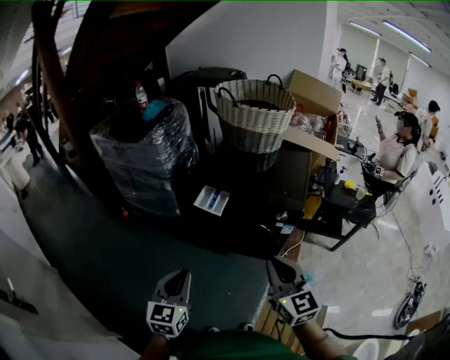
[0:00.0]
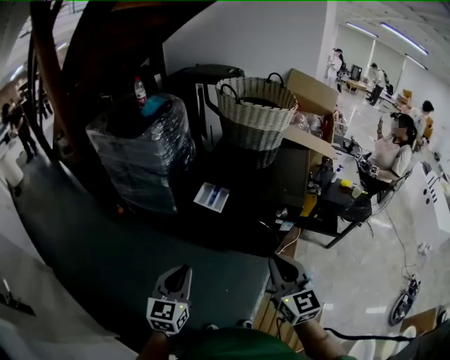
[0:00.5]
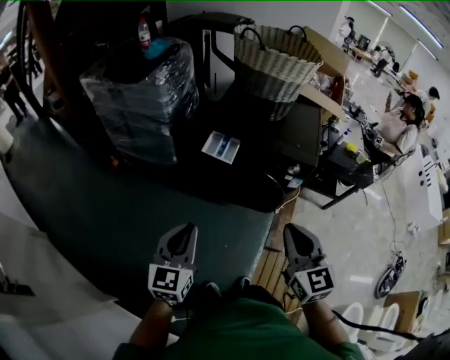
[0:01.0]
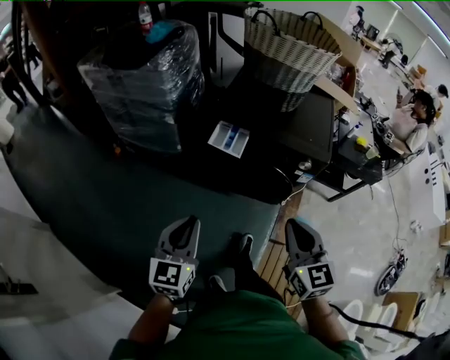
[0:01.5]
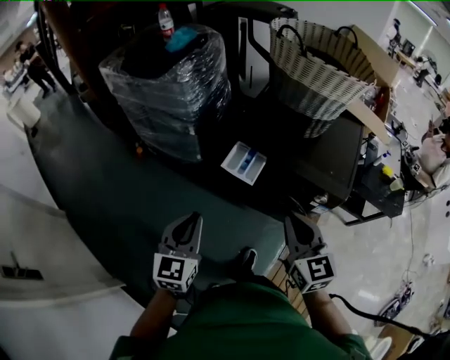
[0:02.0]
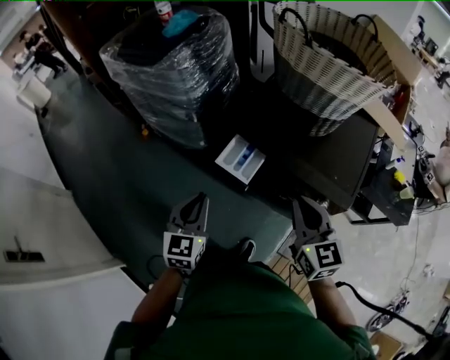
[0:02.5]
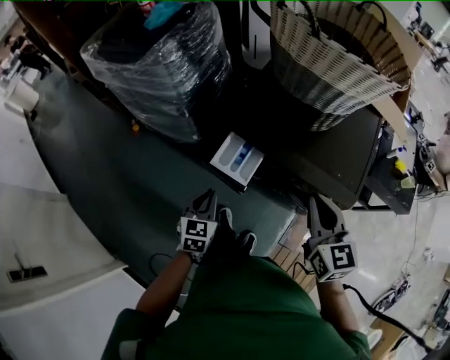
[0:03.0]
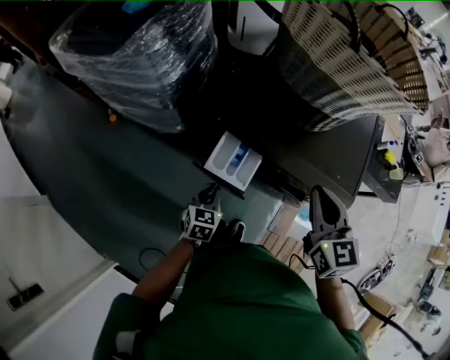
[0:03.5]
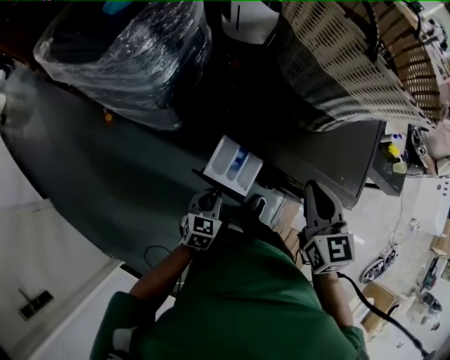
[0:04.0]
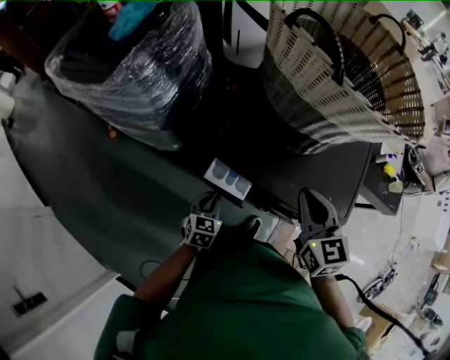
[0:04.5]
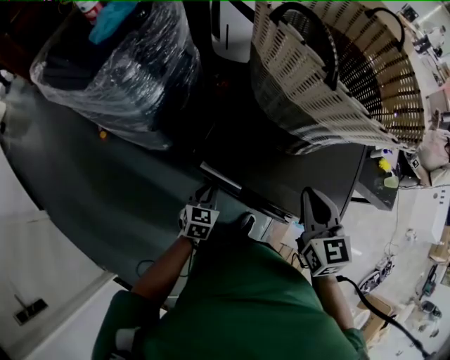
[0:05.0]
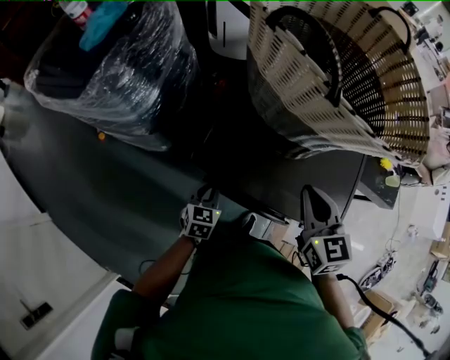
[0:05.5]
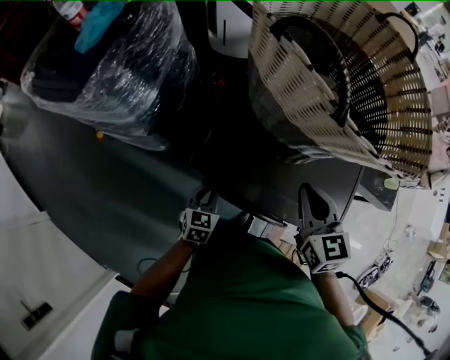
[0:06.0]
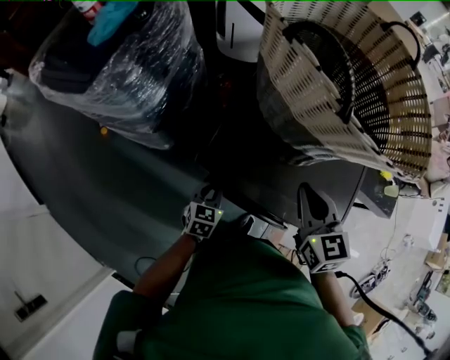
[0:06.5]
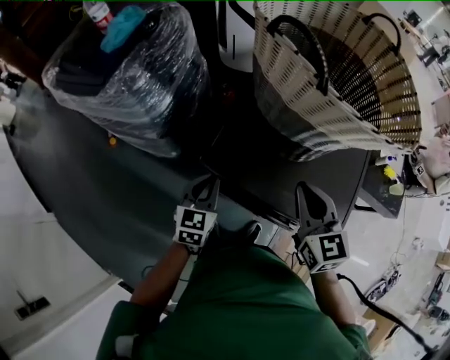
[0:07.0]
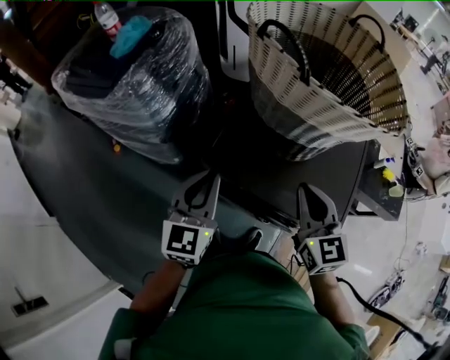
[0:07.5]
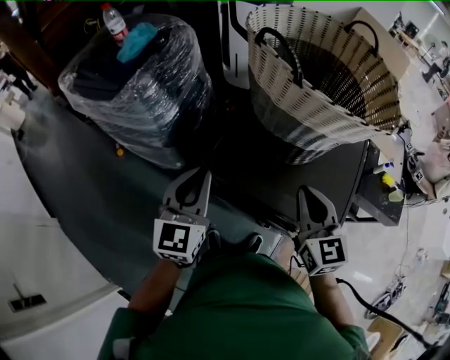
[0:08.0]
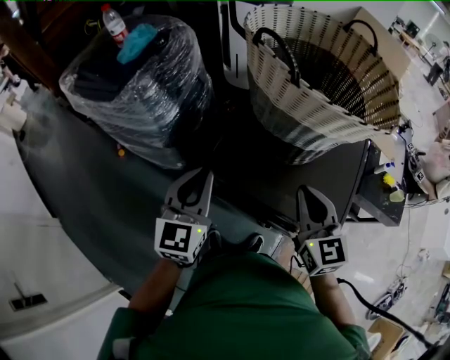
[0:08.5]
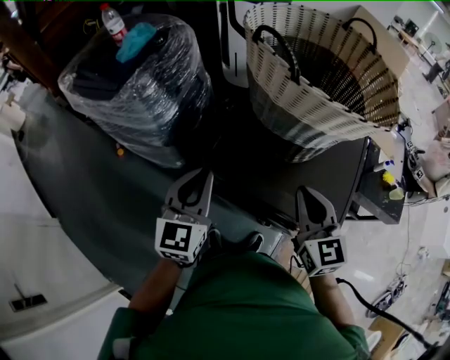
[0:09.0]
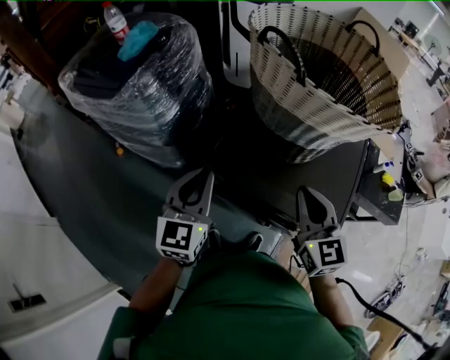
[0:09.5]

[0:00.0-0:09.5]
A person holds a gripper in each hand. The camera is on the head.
0:00.0 to 0:02.0: Both grippers move forward, about 20 cm.
0:02.0 to 0:04.0: The left gripper moves downward and forward, approximately 35 cm, and turns by approximately 30 degrees. Meanwhile the right gripper travels forward by about 25 cm.
0:04.0 to 0:05.5: The left gripper shifts about 15 cm forward; the right gripper goes approximately 10 cm forward and to the right.
0:05.5 to 0:07.5: The left gripper goes roughly 25 cm upward, and points its fingers some 30 degrees further upward. The right gripper shifts some 5 cm upward.
0:07.5 to 0:09.5: The grippers move only a little.

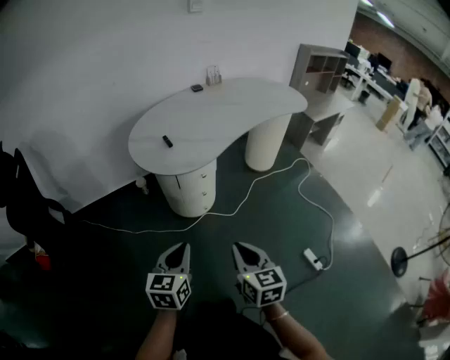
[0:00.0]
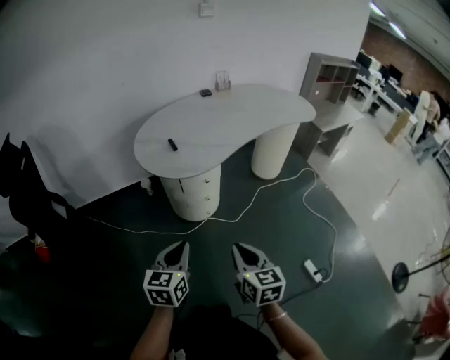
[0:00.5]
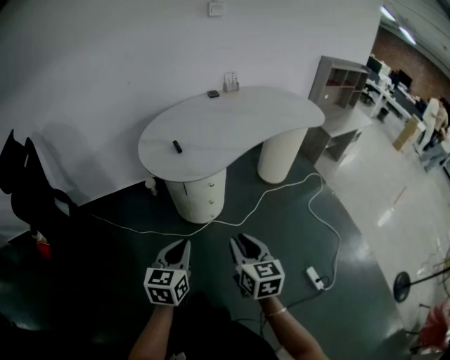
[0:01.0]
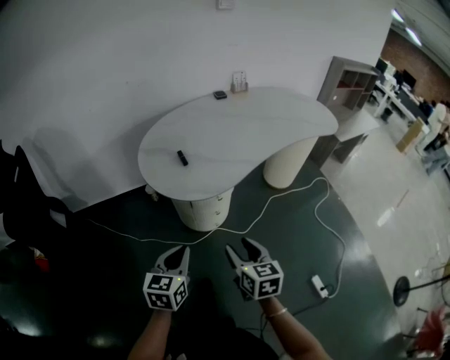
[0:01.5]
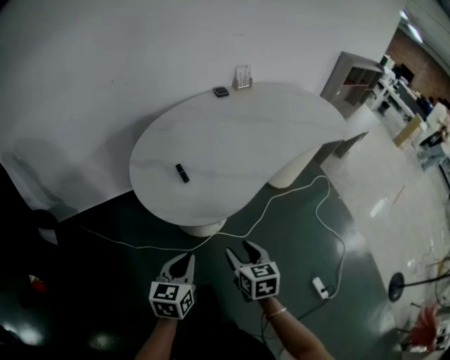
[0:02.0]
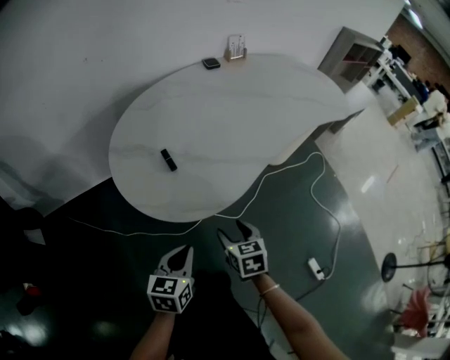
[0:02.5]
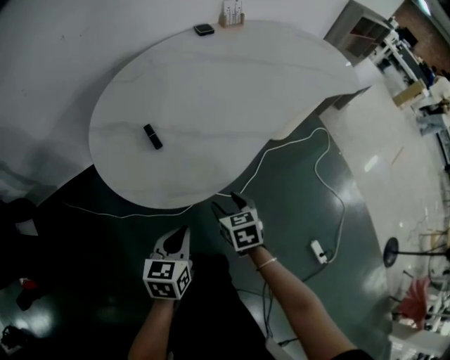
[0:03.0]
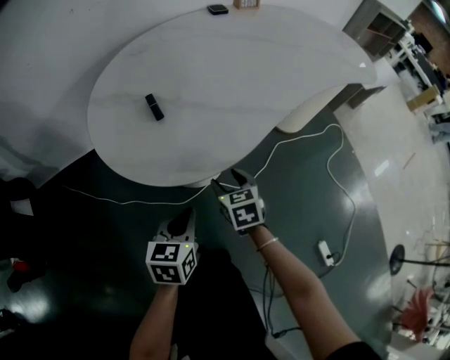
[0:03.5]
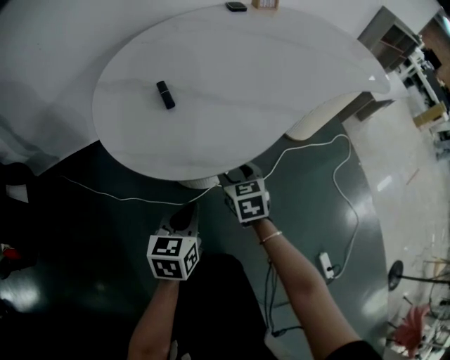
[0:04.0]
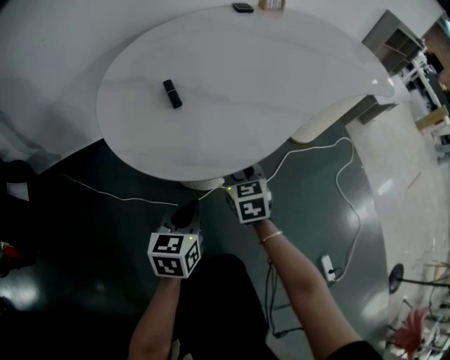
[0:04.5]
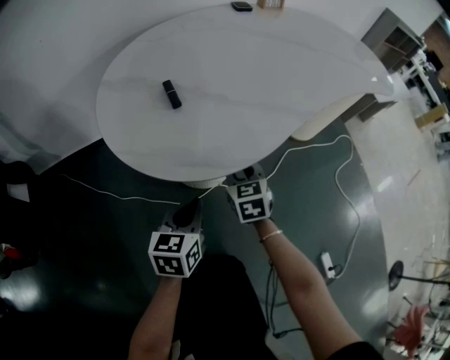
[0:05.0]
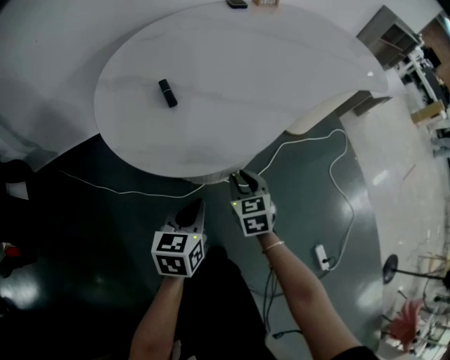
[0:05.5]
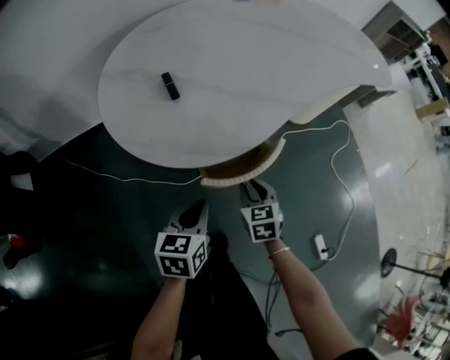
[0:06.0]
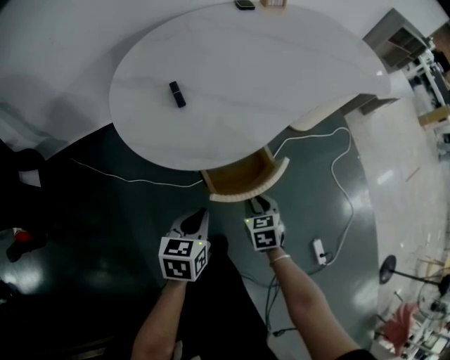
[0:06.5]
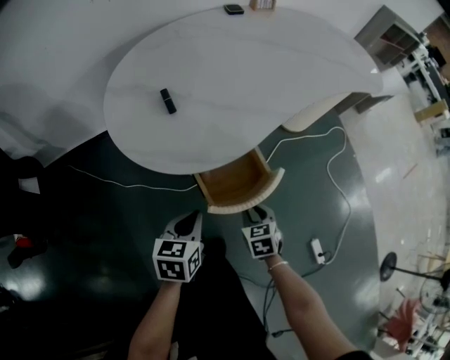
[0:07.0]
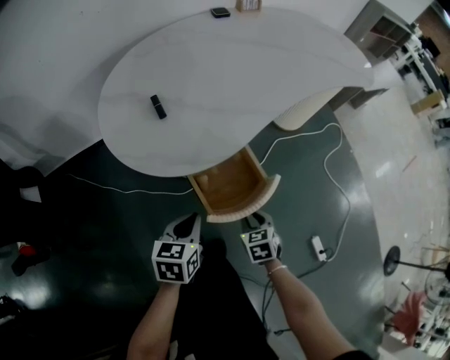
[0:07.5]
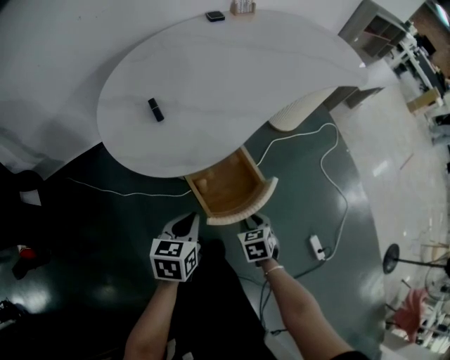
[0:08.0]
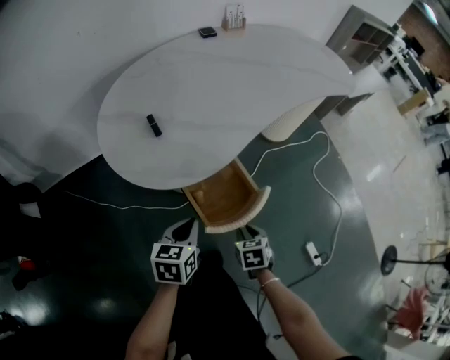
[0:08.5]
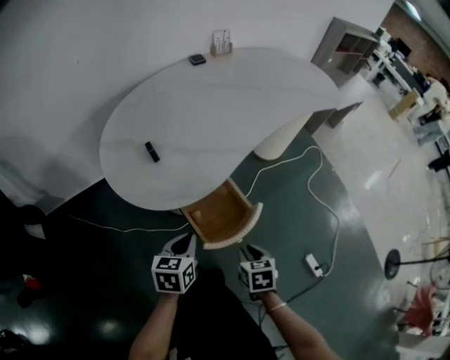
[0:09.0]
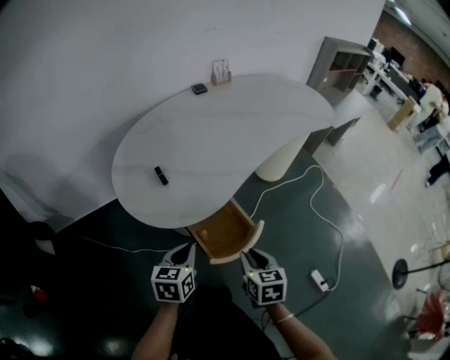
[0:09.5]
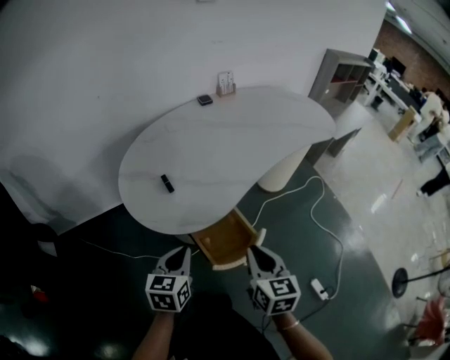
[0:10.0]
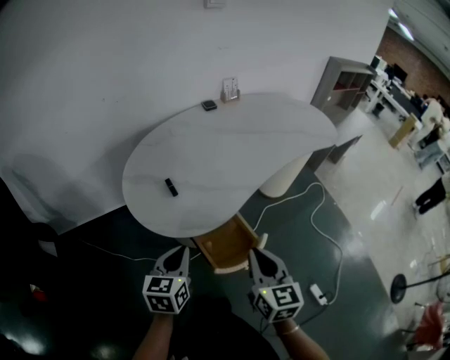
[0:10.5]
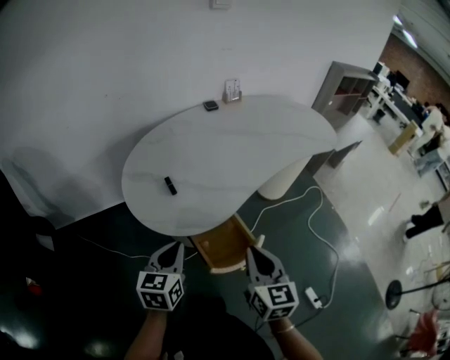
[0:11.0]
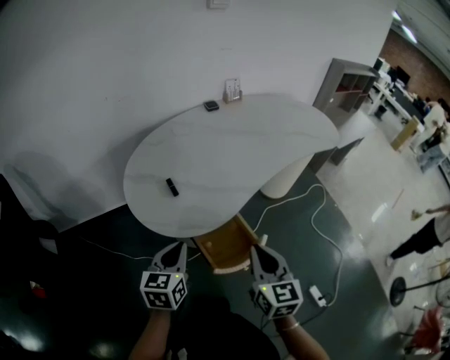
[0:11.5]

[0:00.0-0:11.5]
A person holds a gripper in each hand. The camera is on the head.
0:00.0 to 0:02.0: Both grippers travel together forward, about 25 cm. The right gripper opens its fingers.
0:02.0 to 0:04.0: The left gripper travels downward by roughly 15 cm, while the right gripper is displaced downward and forward by about 25 cm.
0:04.0 to 0:06.0: The left gripper shifts by about 5 cm; the right gripper is displaced backward and to the right by approximately 10 cm, and closes its fingers.
0:06.0 to 0:07.5: The right gripper moves backward and to the right, some 10 cm.
0:07.5 to 0:09.5: The left gripper shifts about 10 cm upward, while the right gripper is displaced upward by some 20 cm, and rotates about 30 degrees.
0:09.5 to 0:11.5: The left gripper moves upward, some 10 cm; the right gripper heads upward, covering roughly 15 cm, turns by some 30 degrees, and closes.

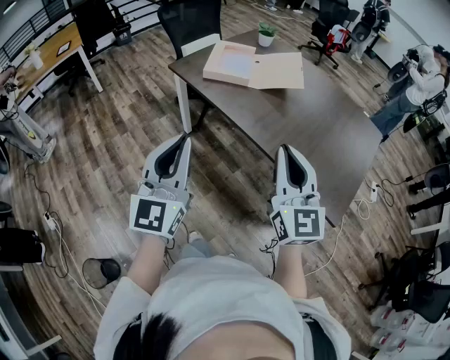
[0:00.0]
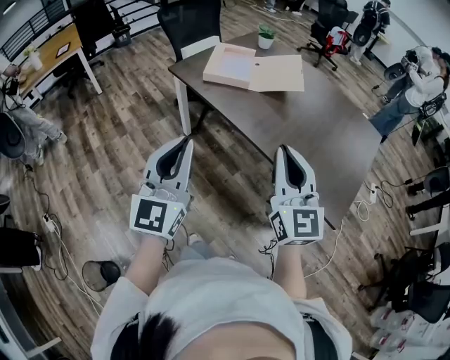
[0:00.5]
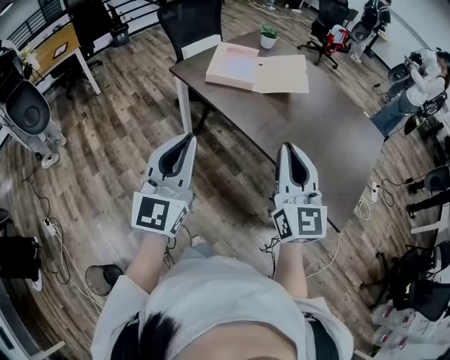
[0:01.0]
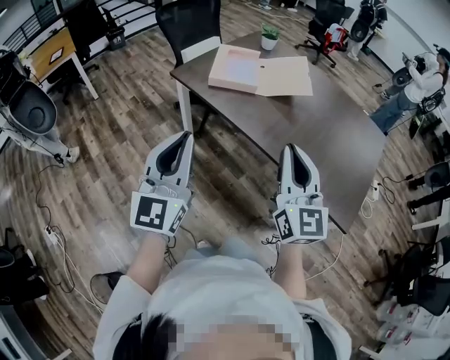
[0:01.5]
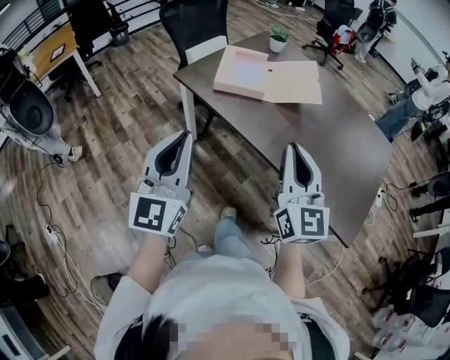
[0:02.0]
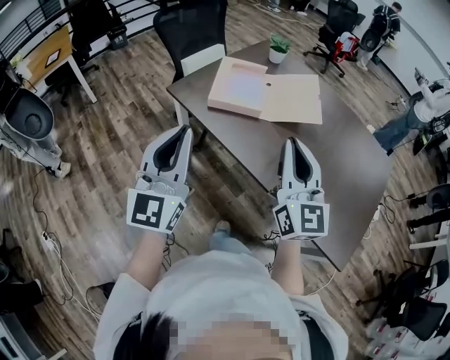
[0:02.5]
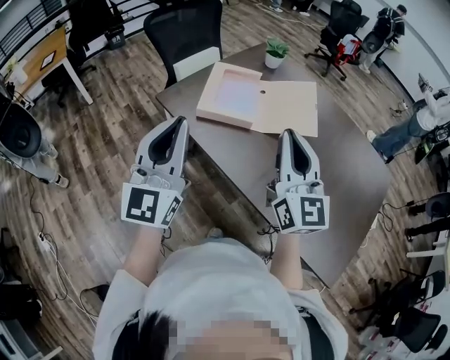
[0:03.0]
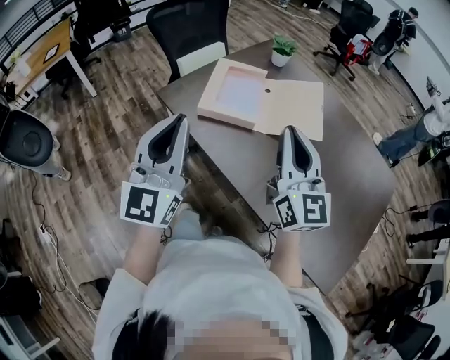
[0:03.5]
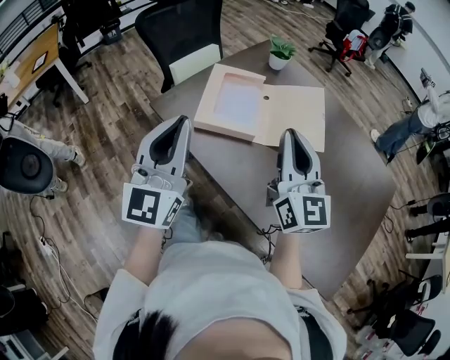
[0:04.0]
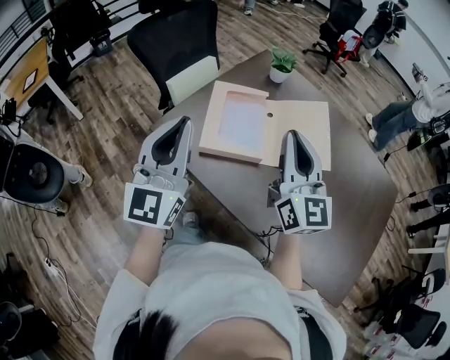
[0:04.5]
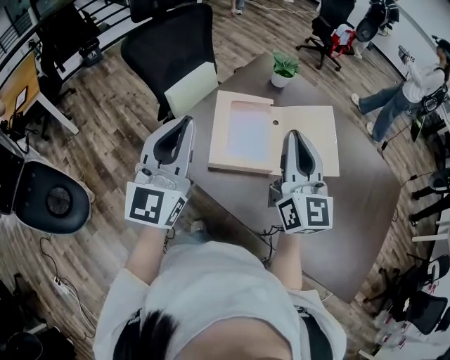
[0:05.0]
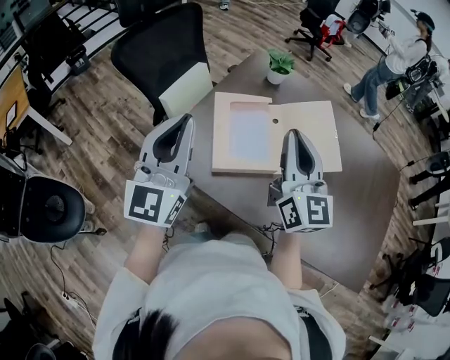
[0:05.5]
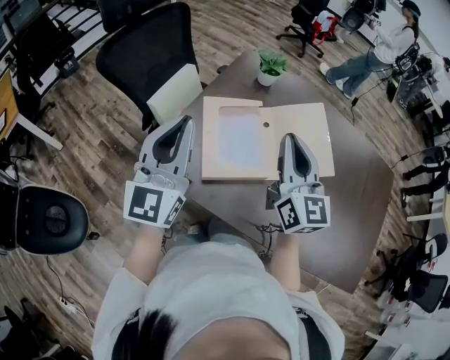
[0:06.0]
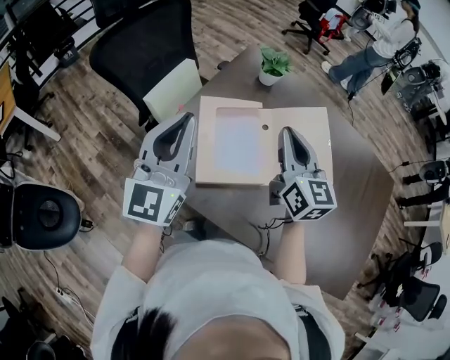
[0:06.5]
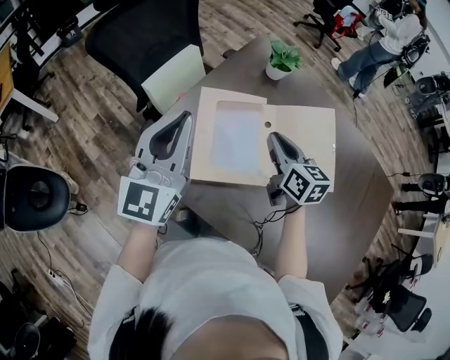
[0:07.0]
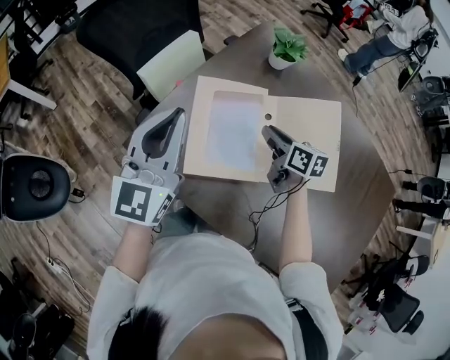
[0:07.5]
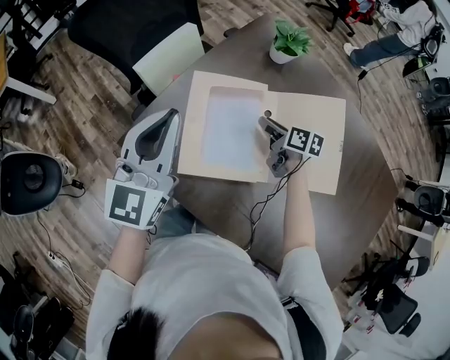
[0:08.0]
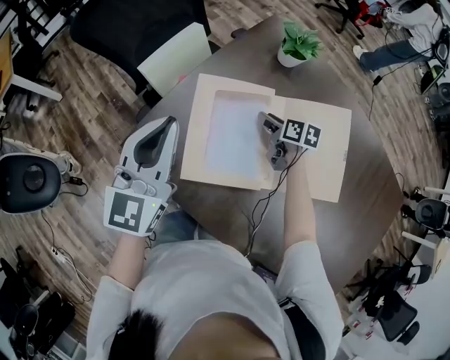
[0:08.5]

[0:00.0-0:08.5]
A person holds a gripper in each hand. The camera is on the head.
0:00.0 to 0:02.0: The grippers both shift forward and to the left by approximately 15 cm.
0:02.0 to 0:04.0: Both grippers move forward, some 30 cm.
0:04.0 to 0:06.5: The two grippers go approximately 25 cm forward.
0:06.5 to 0:08.5: The left gripper travels downward and forward by some 10 cm, while the right gripper moves downward and forward, some 35 cm, tips its fingers downward by about 30 degrees, and opens.
